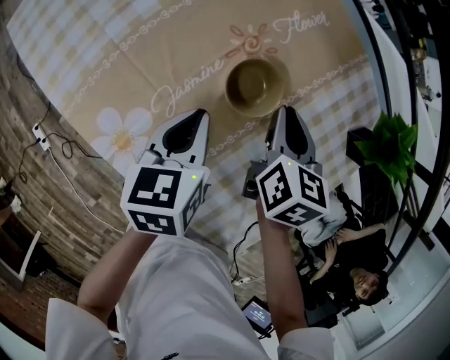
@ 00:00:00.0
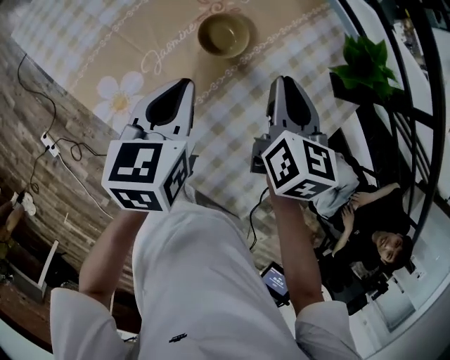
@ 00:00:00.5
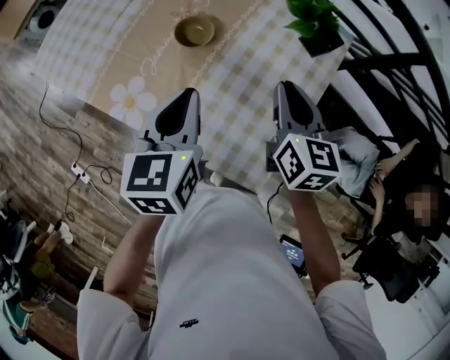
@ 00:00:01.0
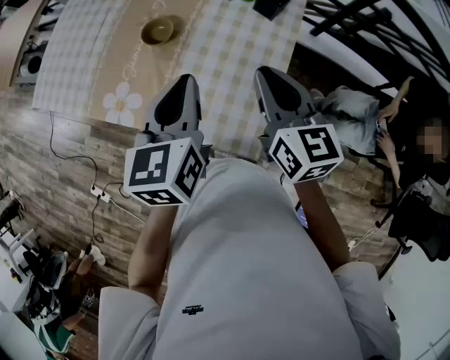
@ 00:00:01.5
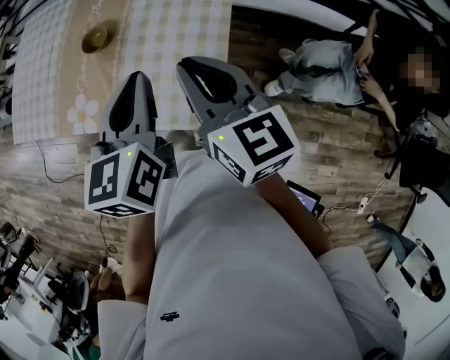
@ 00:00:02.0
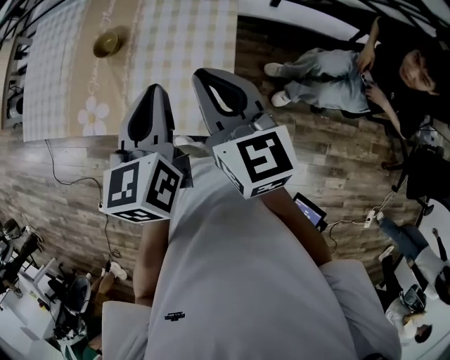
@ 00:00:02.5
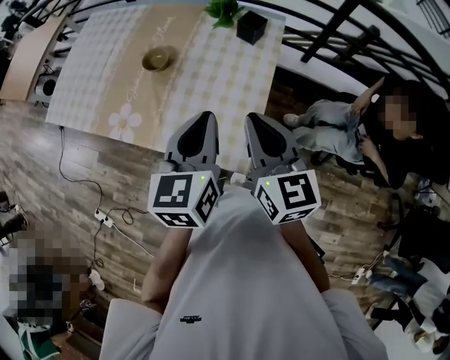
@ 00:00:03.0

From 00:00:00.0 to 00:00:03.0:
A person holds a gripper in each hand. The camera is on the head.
From 00:00:00.0 to 00:00:01.5: The left gripper shifts roughly 40 cm upward, backward and to the right, and swivels some 30 degrees, while the right gripper travels backward, upward and to the right by about 40 cm, and swivels some 30 degrees.
From 00:00:01.5 to 00:00:03.0: The left gripper shifts some 15 cm backward and to the right, while the right gripper goes some 10 cm backward.

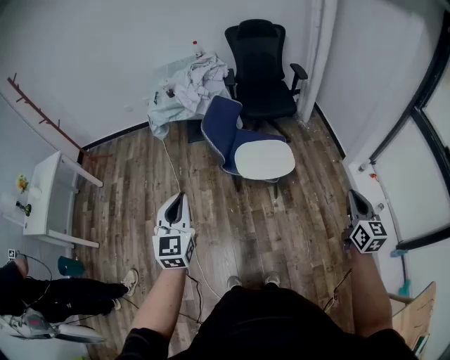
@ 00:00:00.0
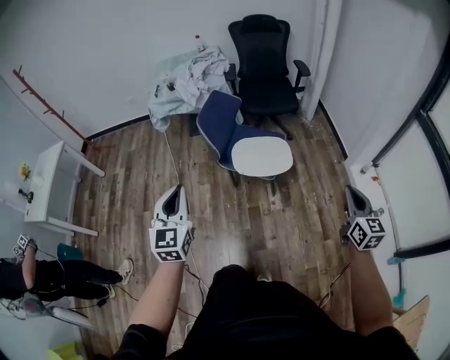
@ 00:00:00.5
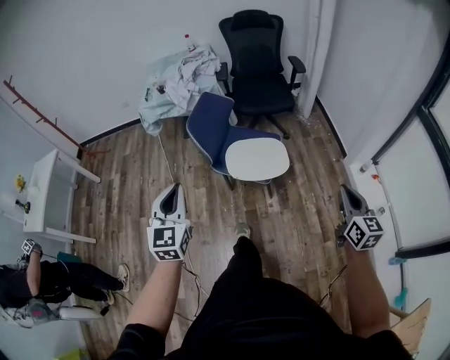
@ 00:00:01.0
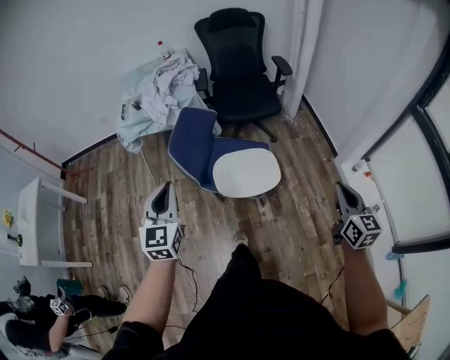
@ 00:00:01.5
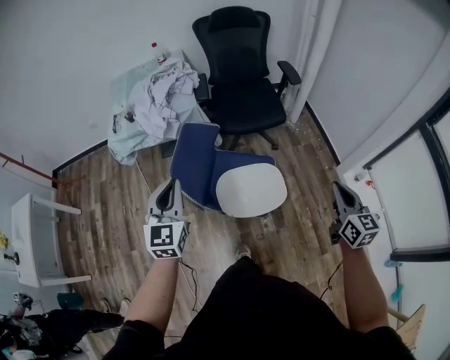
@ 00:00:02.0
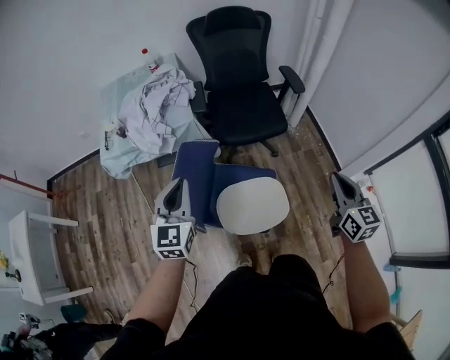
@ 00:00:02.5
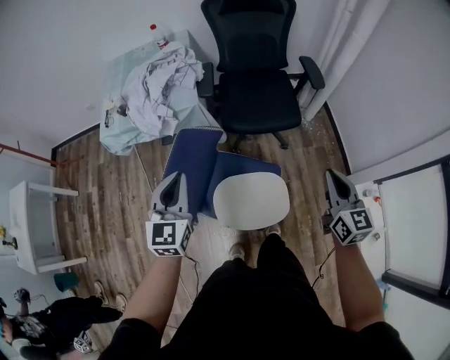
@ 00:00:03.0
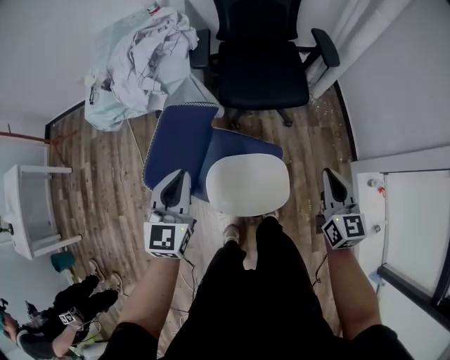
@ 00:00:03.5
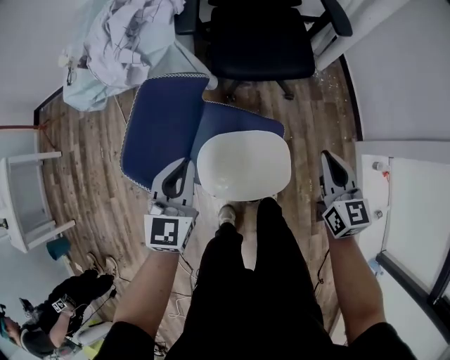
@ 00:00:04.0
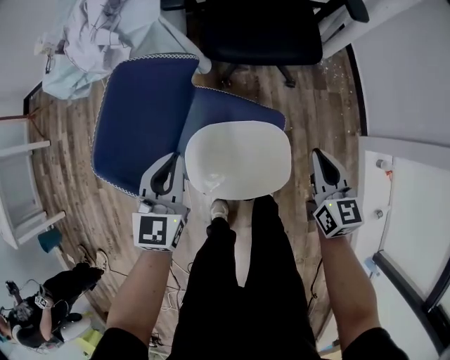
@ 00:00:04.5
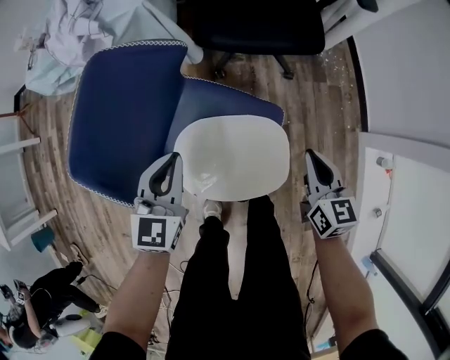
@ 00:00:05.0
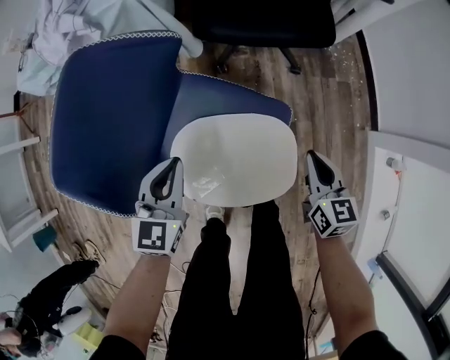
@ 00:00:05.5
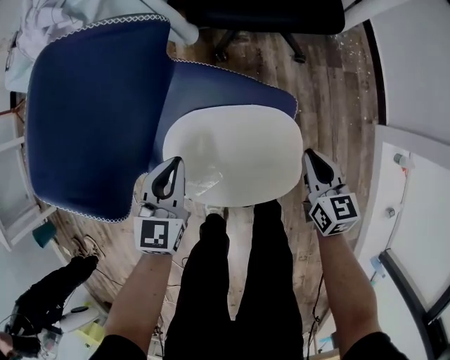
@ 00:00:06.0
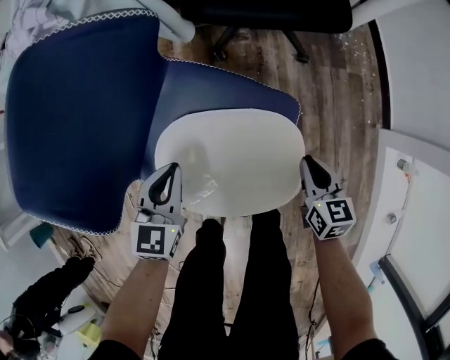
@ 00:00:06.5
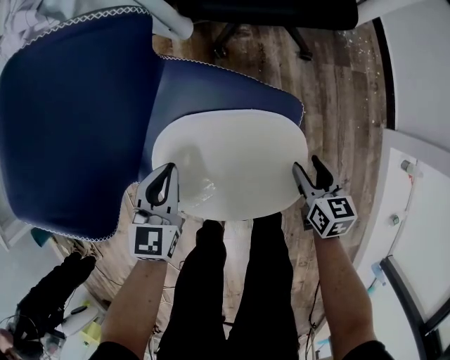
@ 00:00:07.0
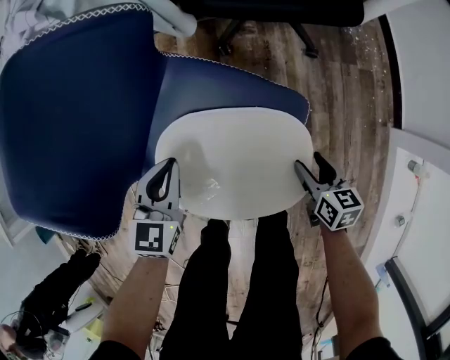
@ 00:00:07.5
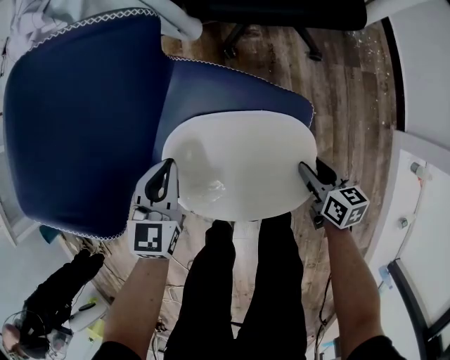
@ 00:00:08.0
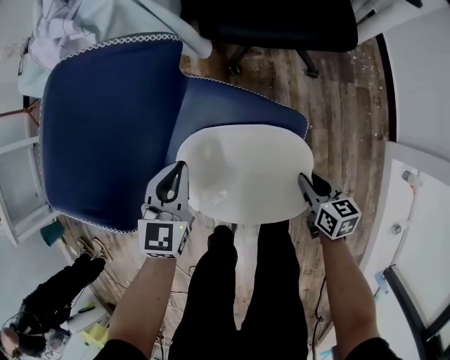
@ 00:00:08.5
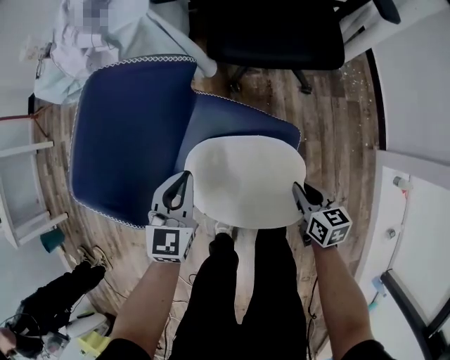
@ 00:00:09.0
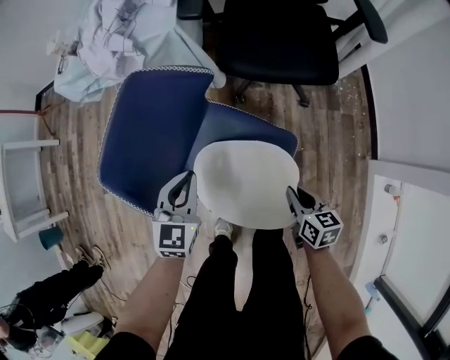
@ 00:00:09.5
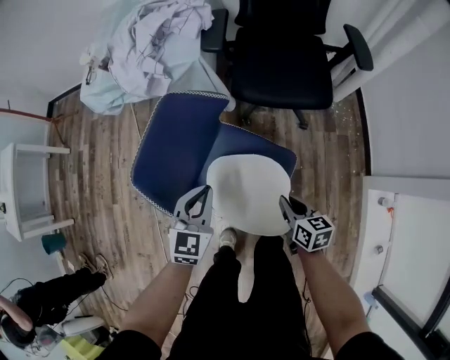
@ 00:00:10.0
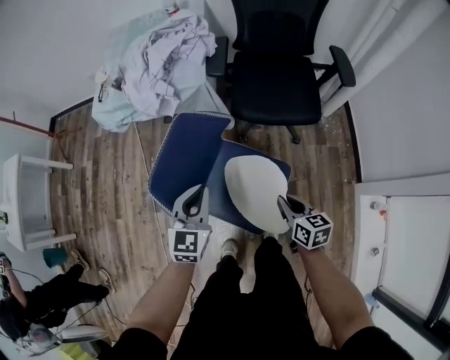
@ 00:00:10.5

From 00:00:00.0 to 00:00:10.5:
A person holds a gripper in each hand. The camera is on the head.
From 00:00:00.0 to 00:00:02.0: The two grippers go approximately 35 cm forward.
From 00:00:02.0 to 00:00:04.0: The left gripper is displaced downward, forward and to the right by roughly 30 cm, while the right gripper is displaced forward and downward by roughly 30 cm.
From 00:00:04.0 to 00:00:06.5: Both grippers move downward, approximately 35 cm. The right gripper turns by some 20 degrees.
From 00:00:06.5 to 00:00:08.5: The right gripper opens, then closes once more; the left gripper ends up approximately 5 cm from where it was.
From 00:00:08.5 to 00:00:10.5: The two grippers go about 30 cm upward.

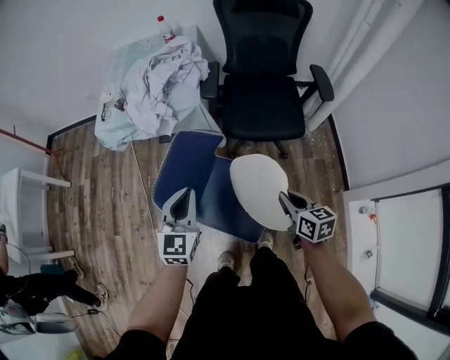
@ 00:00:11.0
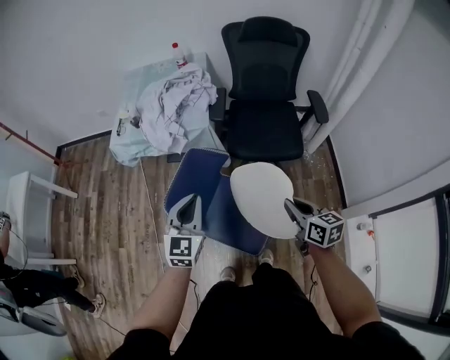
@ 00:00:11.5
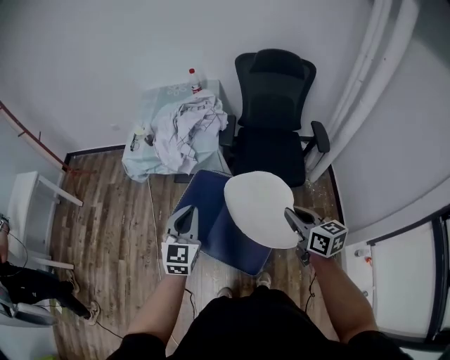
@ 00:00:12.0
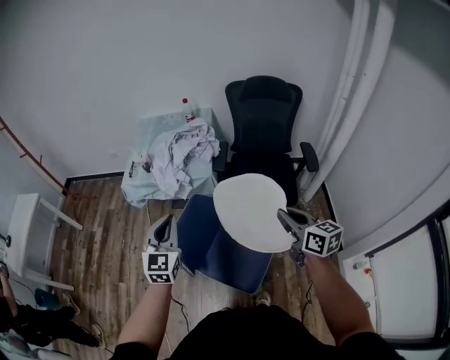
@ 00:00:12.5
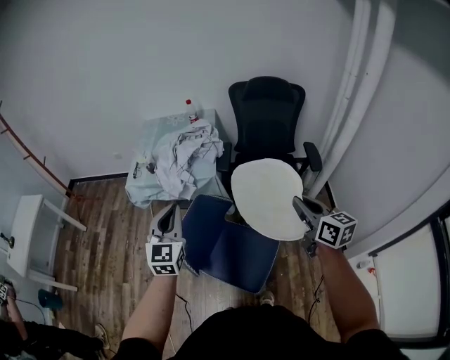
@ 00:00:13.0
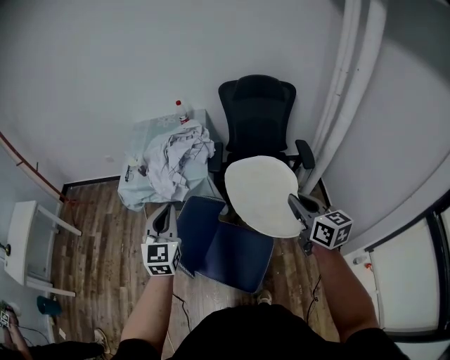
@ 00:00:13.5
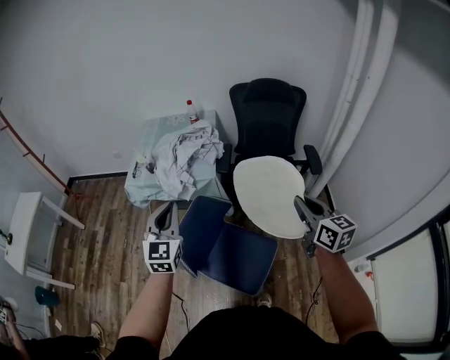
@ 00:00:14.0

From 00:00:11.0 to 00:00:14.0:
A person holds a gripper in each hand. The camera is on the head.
From 00:00:11.0 to 00:00:12.5: The right gripper travels upward by some 25 cm. The left gripper moves upward and to the left, some 15 cm.
From 00:00:12.5 to 00:00:14.0: The right gripper changes place by approximately 5 cm.

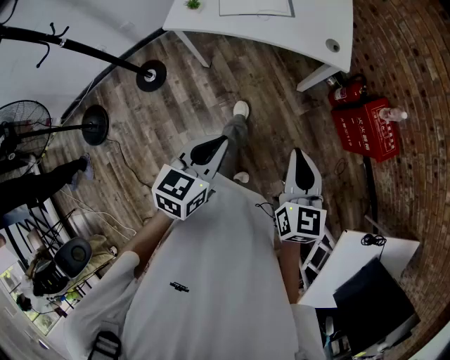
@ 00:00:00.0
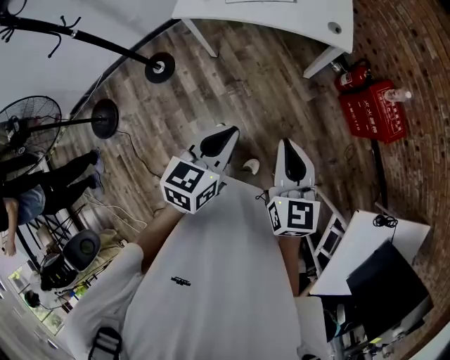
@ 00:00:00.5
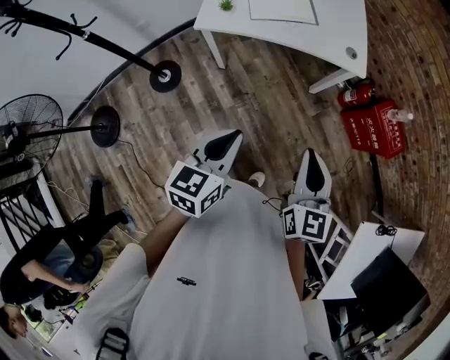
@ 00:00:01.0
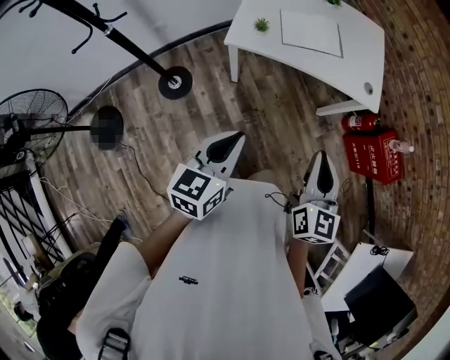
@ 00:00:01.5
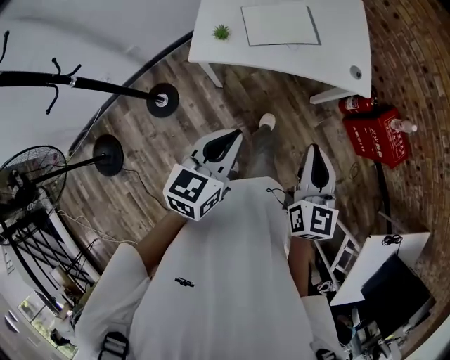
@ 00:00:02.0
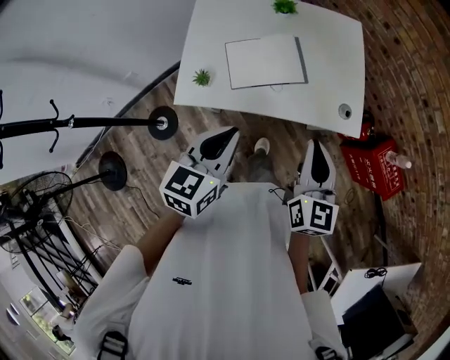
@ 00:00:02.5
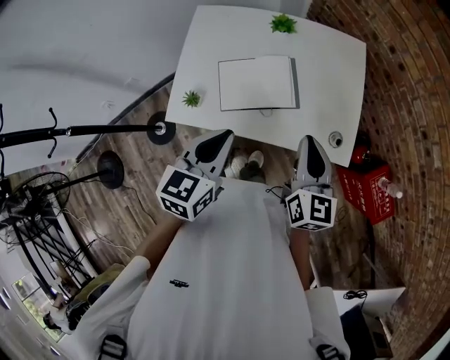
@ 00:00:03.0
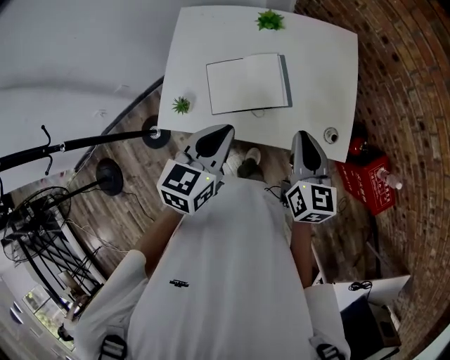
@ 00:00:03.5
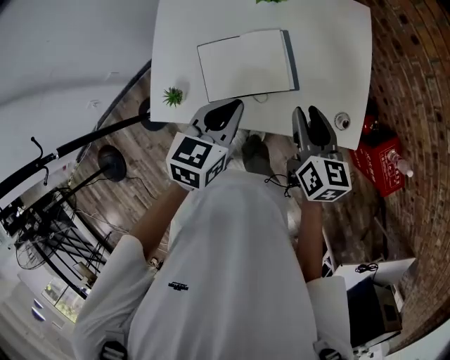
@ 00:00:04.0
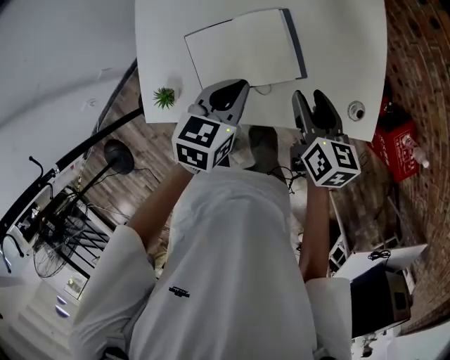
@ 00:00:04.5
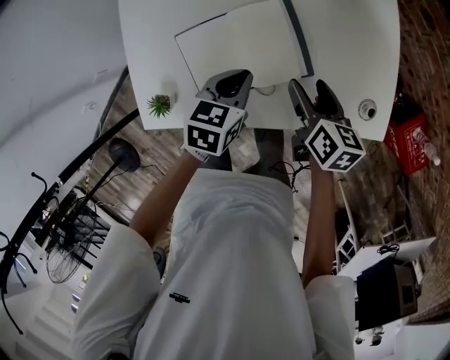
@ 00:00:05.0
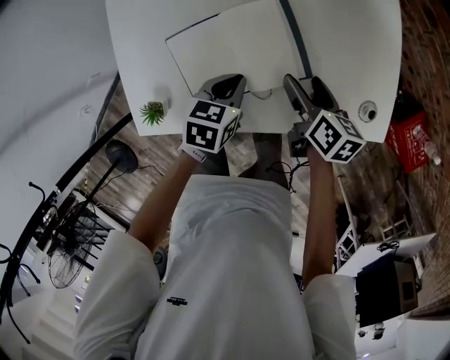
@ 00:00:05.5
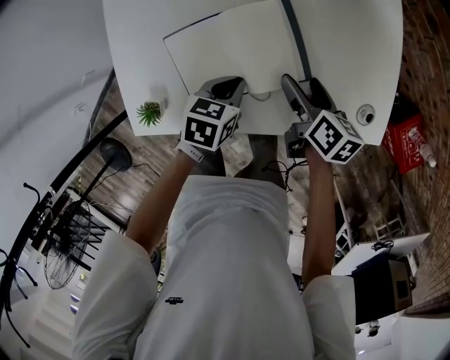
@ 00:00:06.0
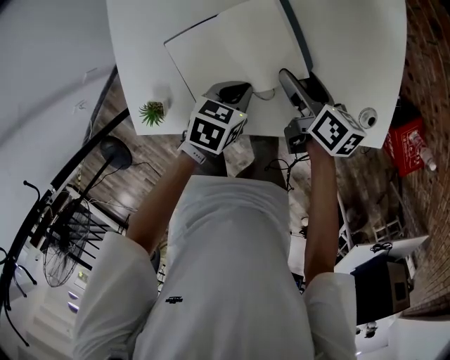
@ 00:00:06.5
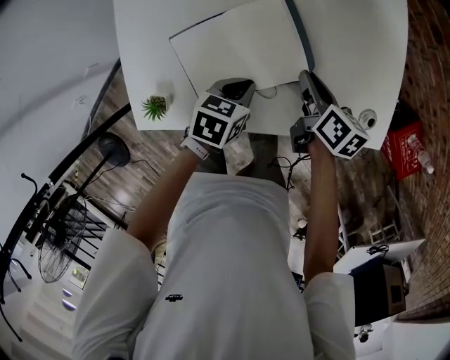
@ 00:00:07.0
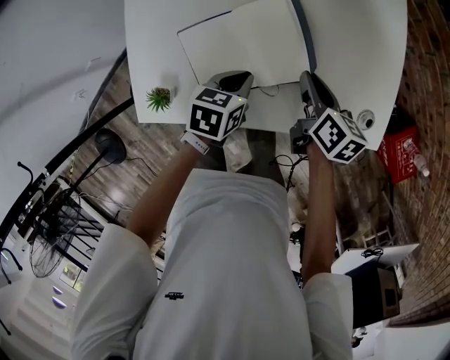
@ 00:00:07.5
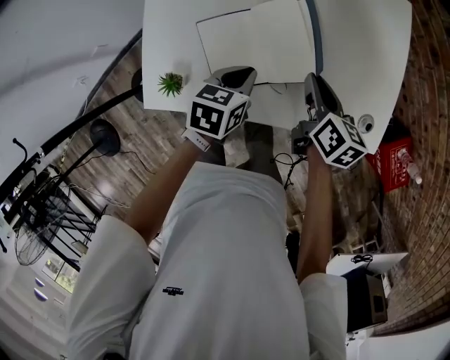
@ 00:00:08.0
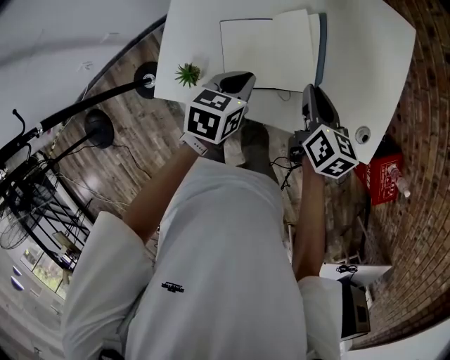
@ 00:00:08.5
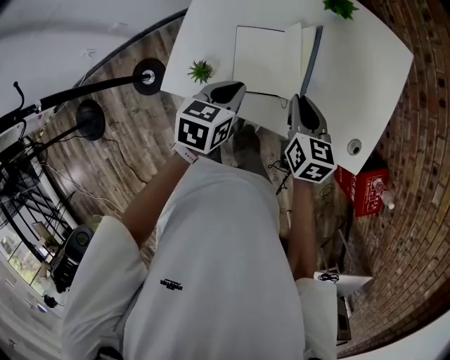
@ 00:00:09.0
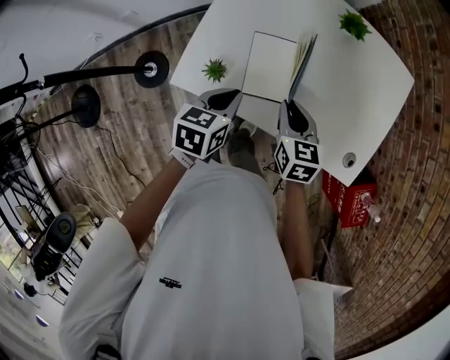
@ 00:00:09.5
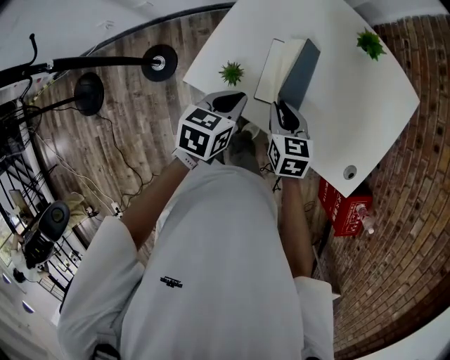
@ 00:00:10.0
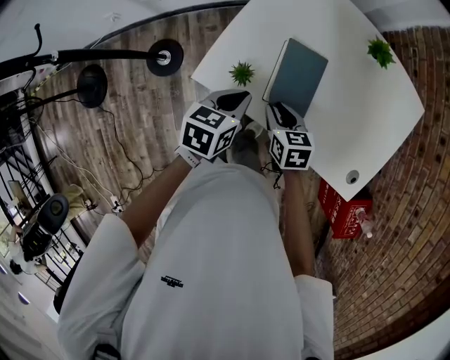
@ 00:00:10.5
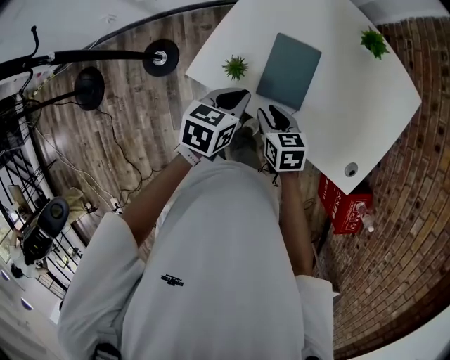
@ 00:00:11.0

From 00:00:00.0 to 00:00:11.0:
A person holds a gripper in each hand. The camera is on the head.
From 00:00:00.0 to 00:00:02.0: The grippers both shift to the left and forward by approximately 20 cm.
From 00:00:02.0 to 00:00:03.5: The two grippers go some 35 cm forward.
From 00:00:03.5 to 00:00:05.5: Both grippers travel together downward and forward, about 30 cm. The left gripper changes its angle by some 30 degrees. Meanwhile the right gripper changes its angle by some 40 degrees, and opens.
From 00:00:05.5 to 00:00:07.5: The right gripper closes its fingers.
From 00:00:07.5 to 00:00:09.0: The left gripper shifts roughly 15 cm upward, to the left and backward. Meanwhile the right gripper moves to the left, upward and backward, roughly 15 cm, and rotates about 30 degrees.
From 00:00:09.0 to 00:00:11.0: The right gripper shifts some 15 cm to the left, downward and backward, and turns by about 30 degrees. Meanwhile the left gripper is displaced to the left by about 5 cm.
